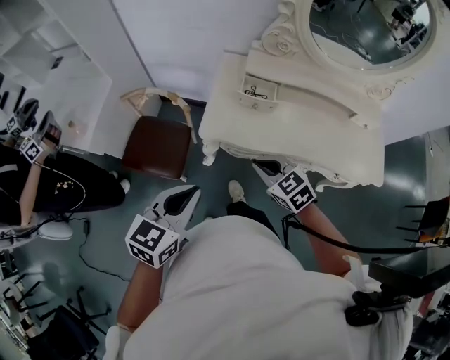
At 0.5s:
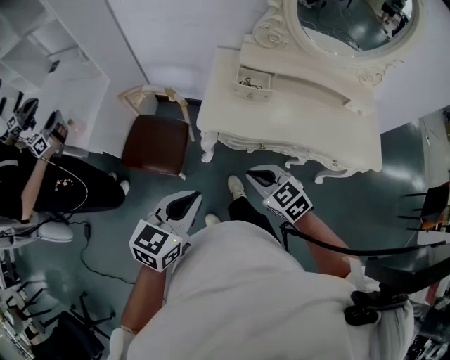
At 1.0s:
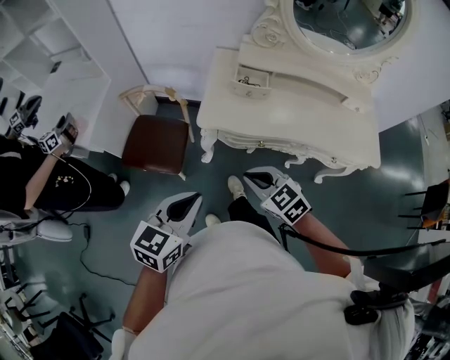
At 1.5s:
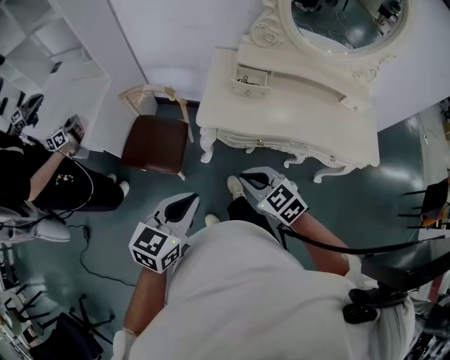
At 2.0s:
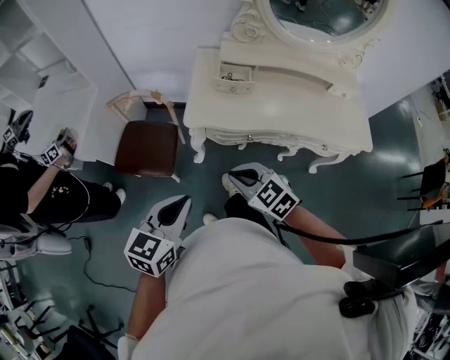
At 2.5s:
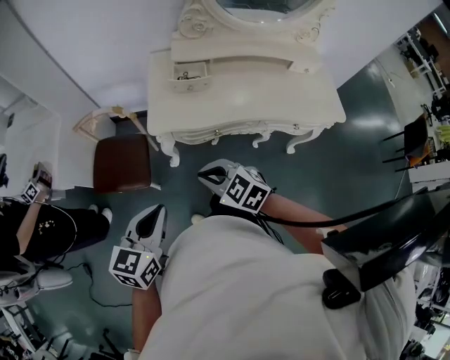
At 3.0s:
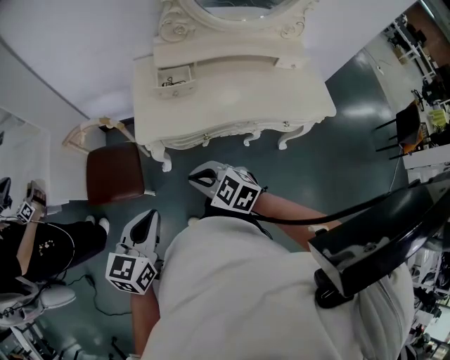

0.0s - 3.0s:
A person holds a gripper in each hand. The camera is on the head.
0.0s - 1.5s: The right gripper shifts approximately 15 cm backward and to the left. The left gripper is displaced backward by roughly 10 cm.
1.5s - 3.0s: The grippers make only small movements.

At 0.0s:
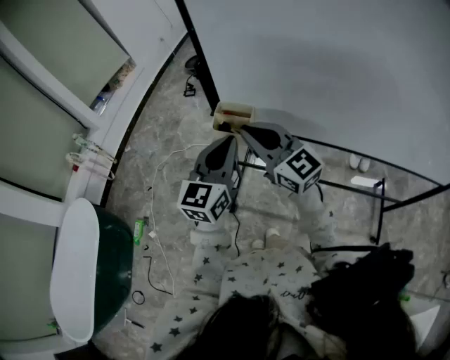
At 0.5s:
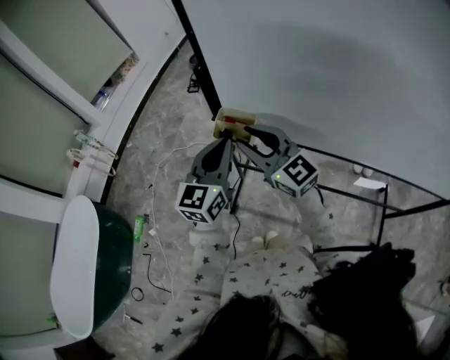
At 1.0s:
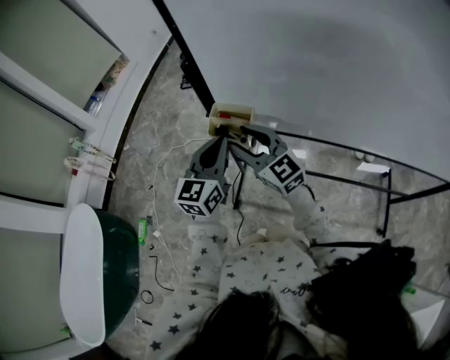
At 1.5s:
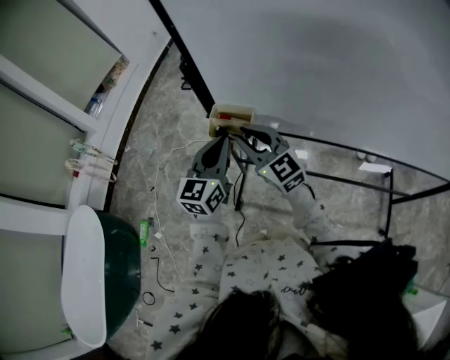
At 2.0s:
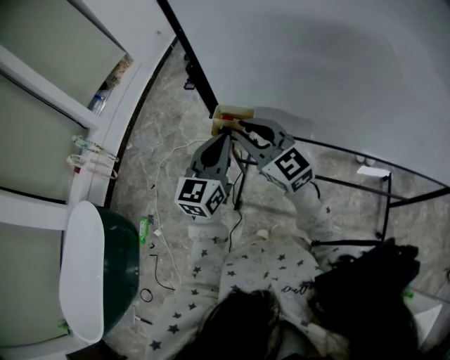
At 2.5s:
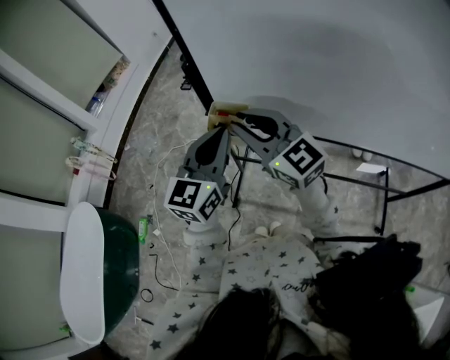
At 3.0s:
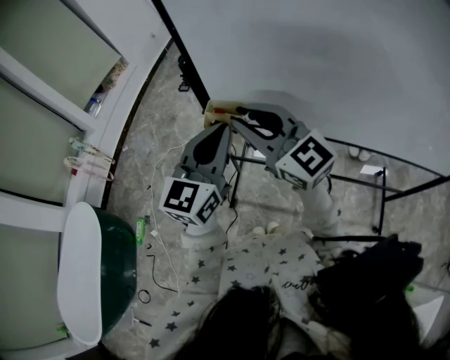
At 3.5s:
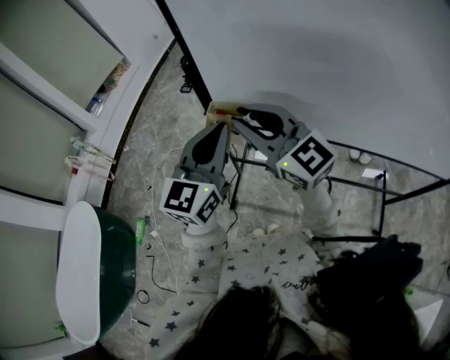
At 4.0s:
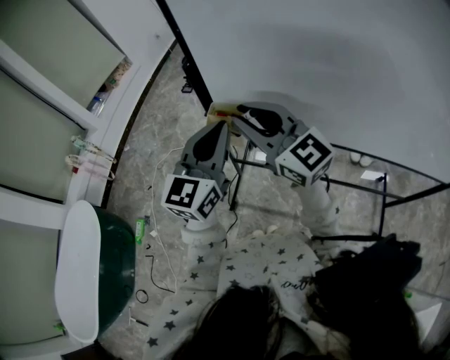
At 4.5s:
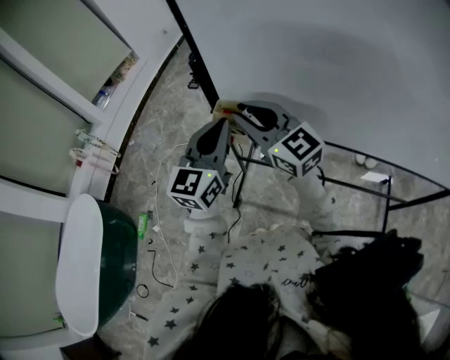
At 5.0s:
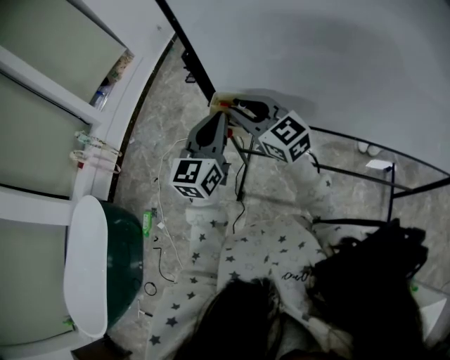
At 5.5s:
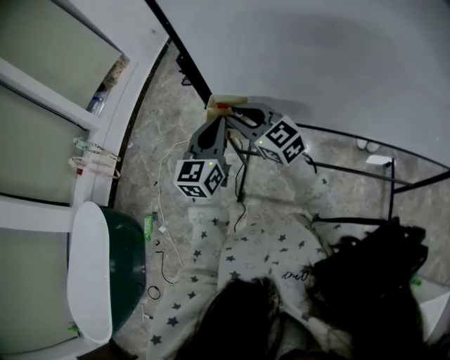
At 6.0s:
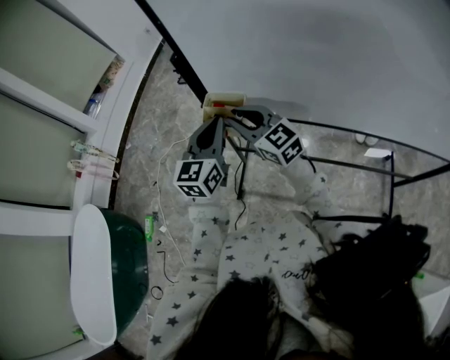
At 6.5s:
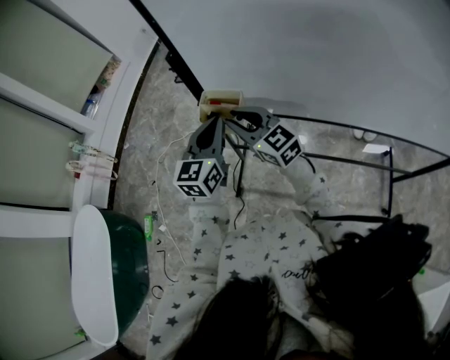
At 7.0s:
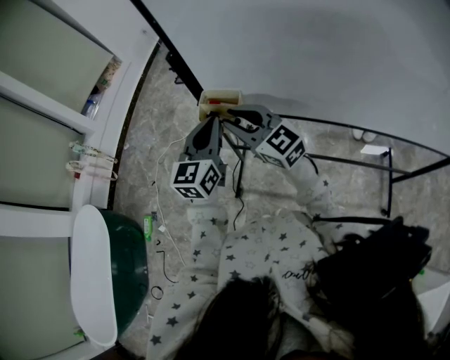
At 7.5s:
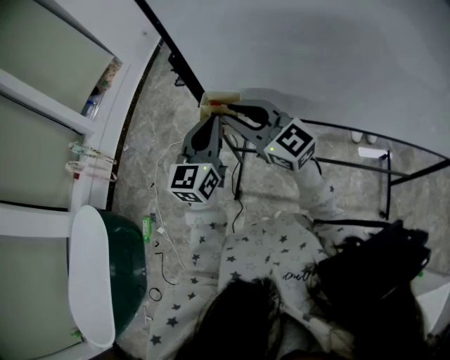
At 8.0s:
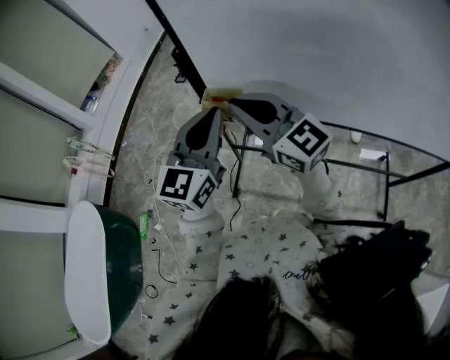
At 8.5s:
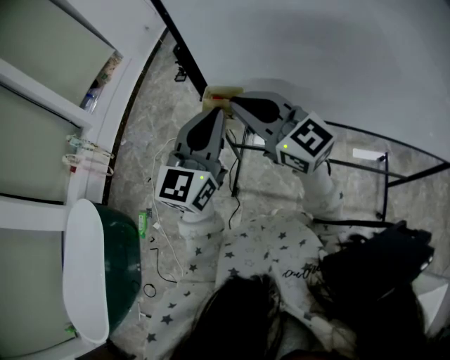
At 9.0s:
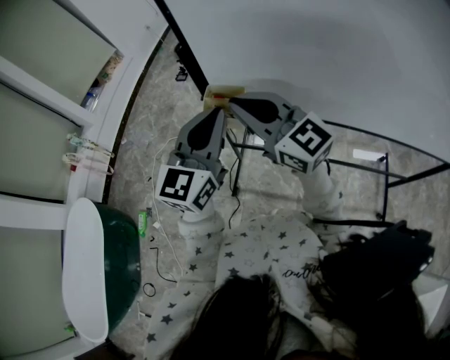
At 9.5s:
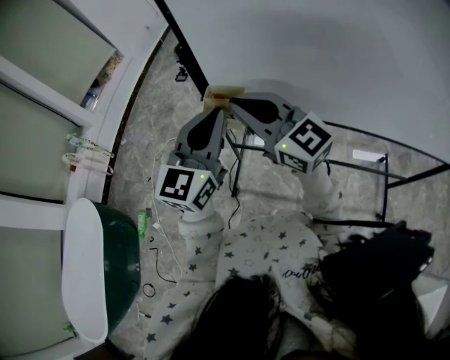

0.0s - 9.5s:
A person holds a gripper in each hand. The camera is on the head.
0.0s - 2.0s: The right gripper travels downward and back again, about 10 cm each way, and opens, then closes once more. The left gripper is displaced forward by some 5 cm.
2.0s - 4.0s: Both grippers move upward, about 5 cm.
4.0s - 5.5s: Both grippers travel together downward, about 10 cm.
5.5s - 7.5s: The right gripper moves upward, approximately 5 cm.
7.5s - 9.5s: The left gripper is displaced upward by roughly 5 cm.

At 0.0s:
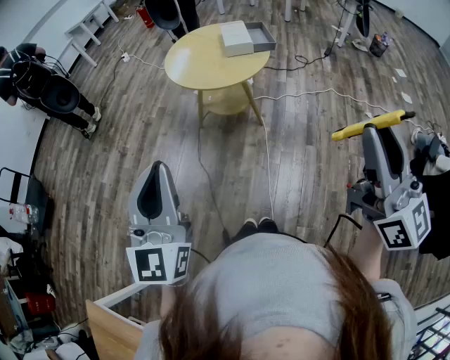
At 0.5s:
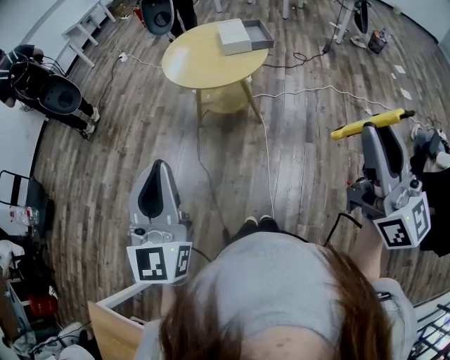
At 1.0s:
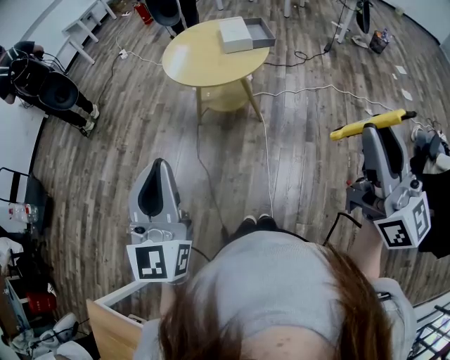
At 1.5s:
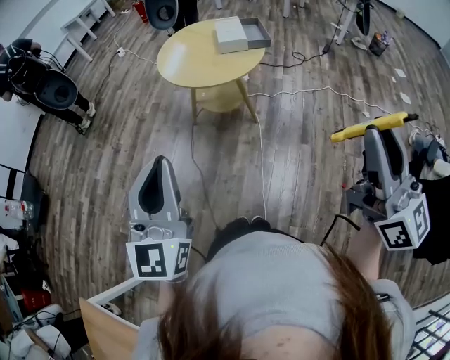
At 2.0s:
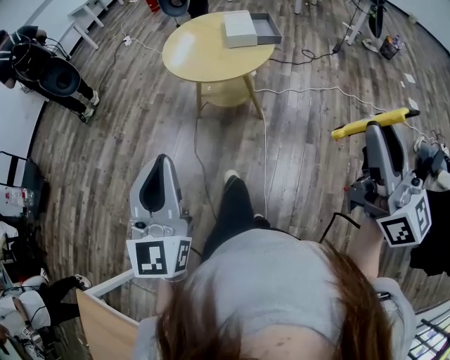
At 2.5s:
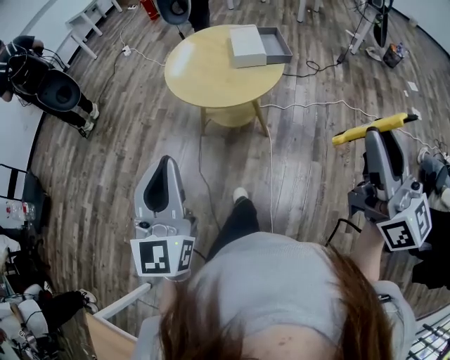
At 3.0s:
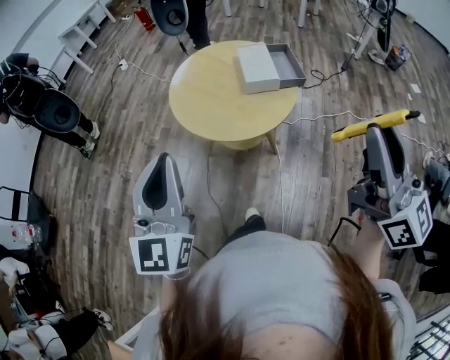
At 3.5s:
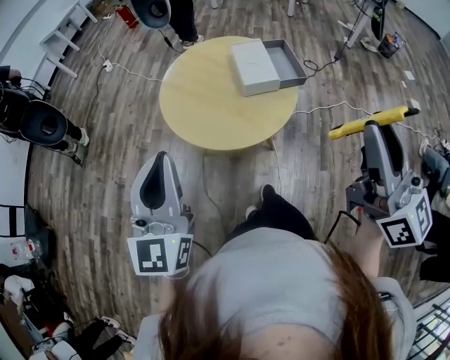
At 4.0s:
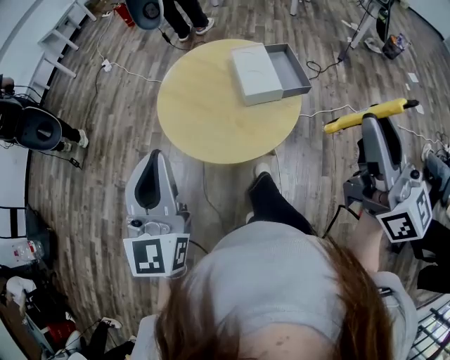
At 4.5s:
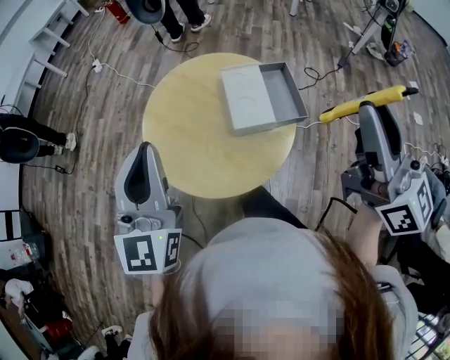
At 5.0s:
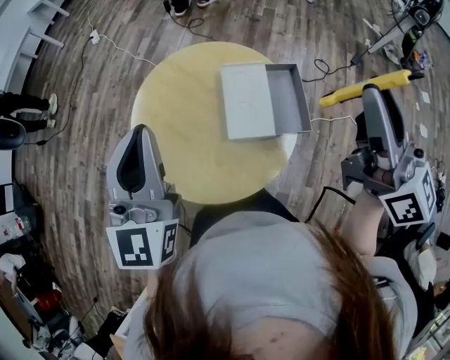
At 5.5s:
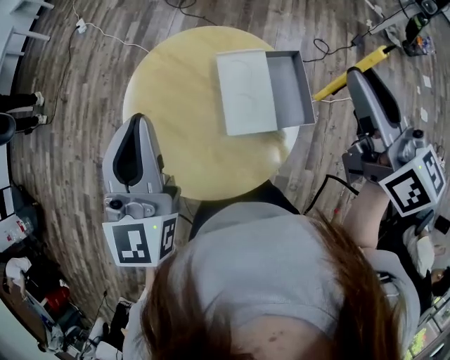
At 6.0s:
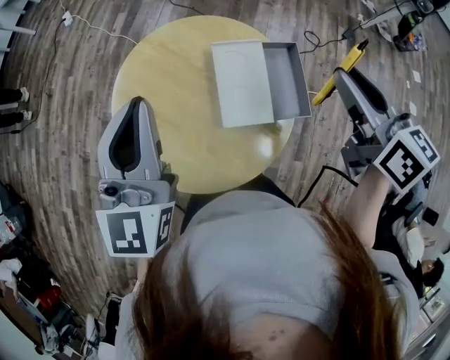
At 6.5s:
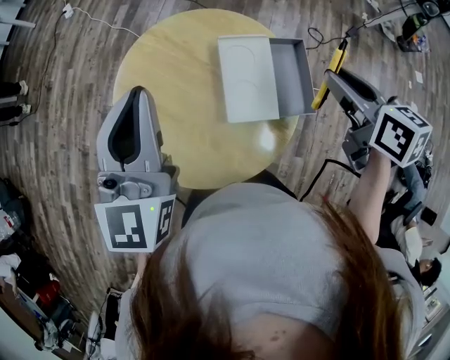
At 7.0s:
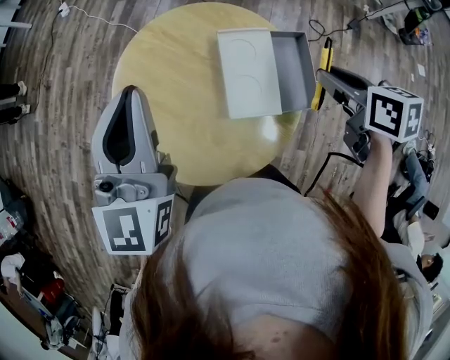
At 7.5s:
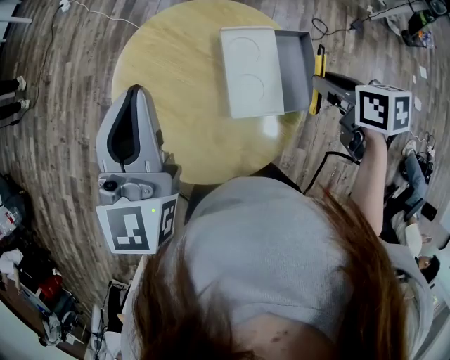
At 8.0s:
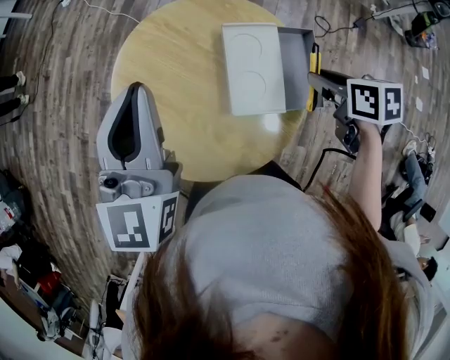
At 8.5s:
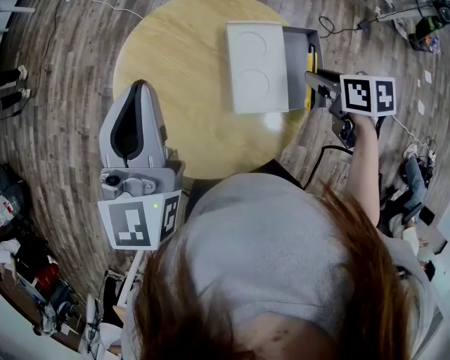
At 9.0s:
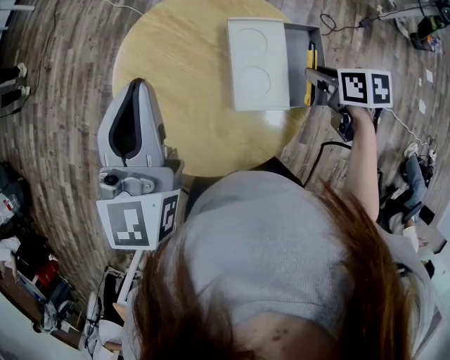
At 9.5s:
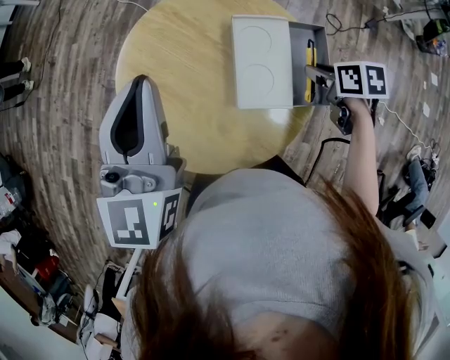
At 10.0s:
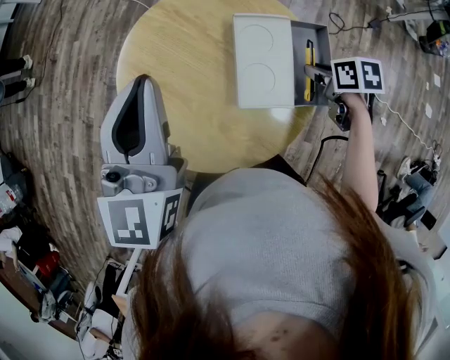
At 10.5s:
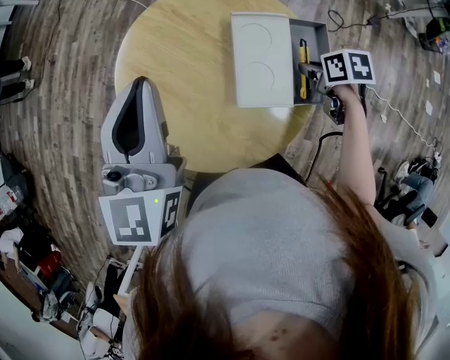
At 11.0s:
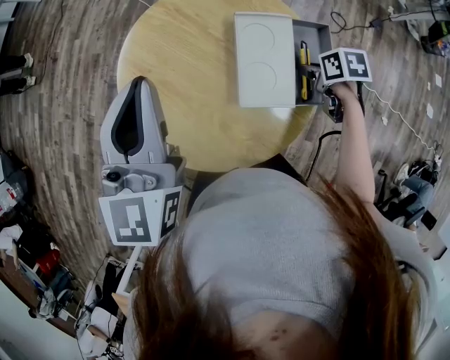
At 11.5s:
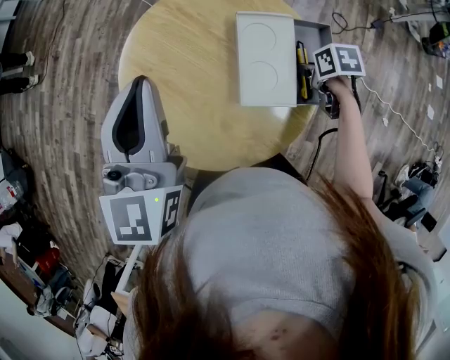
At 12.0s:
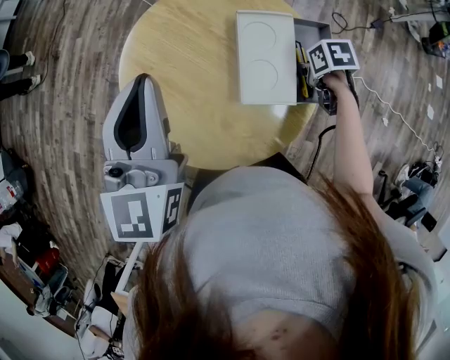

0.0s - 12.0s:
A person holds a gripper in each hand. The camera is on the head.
0.0s - 2.0s: The left gripper ends up some 5 cm from where it was. The right gripper is displaced forward by approximately 5 cm.
2.0s - 4.0s: The grippers both shift forward by some 35 cm.
4.0s - 6.0s: The right gripper goes roughly 35 cm forward and downward, and angles its fingers downward, by some 40 degrees. The left gripper heads forward and to the right, covering roughly 30 cm.
6.0s - 8.0s: The right gripper travels downward by approximately 20 cm, and angles its fingers downward, by some 30 degrees.
8.0s - 10.0s: The right gripper goes some 10 cm downward.
10.0s - 12.0s: The right gripper moves downward, some 5 cm.

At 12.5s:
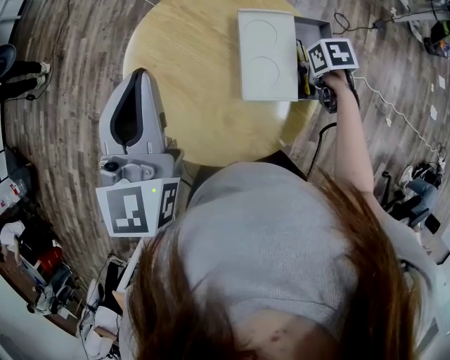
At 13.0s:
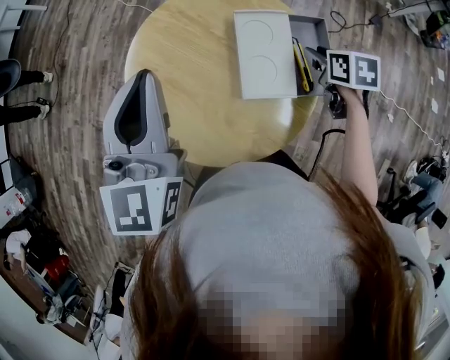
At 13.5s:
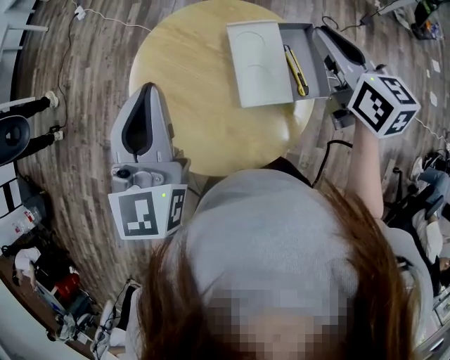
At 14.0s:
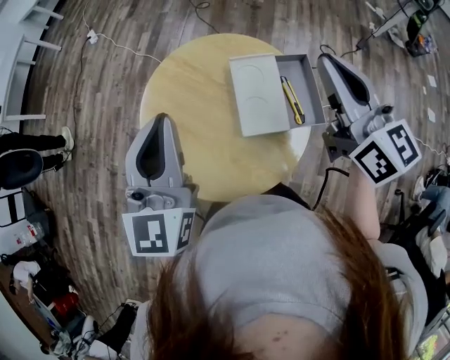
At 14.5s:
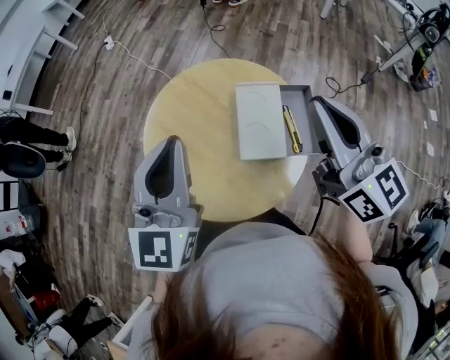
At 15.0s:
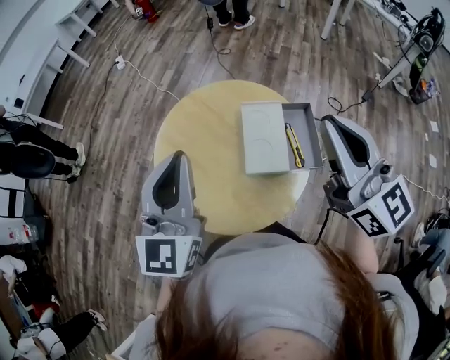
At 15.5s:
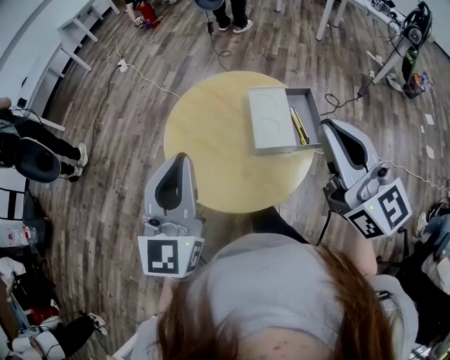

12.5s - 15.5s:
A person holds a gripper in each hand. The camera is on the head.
12.5s - 14.0s: The right gripper is displaced upward by about 35 cm, tilts its fingers some 70 degrees upward, and closes. Meanwhile the left gripper moves some 5 cm.
14.0s - 15.5s: The right gripper shifts about 15 cm backward, to the left and upward. The left gripper goes roughly 10 cm backward.
